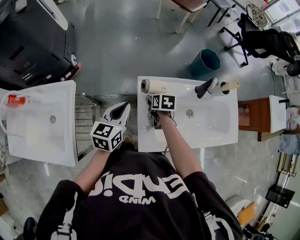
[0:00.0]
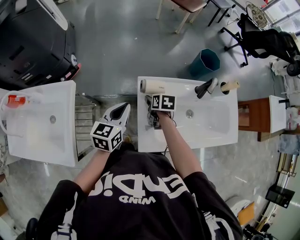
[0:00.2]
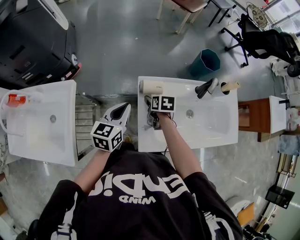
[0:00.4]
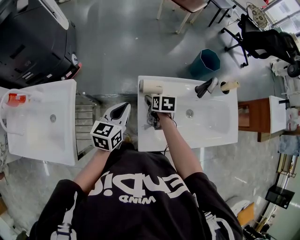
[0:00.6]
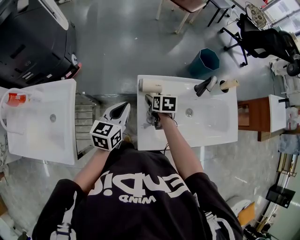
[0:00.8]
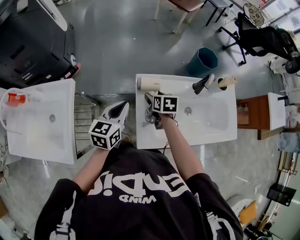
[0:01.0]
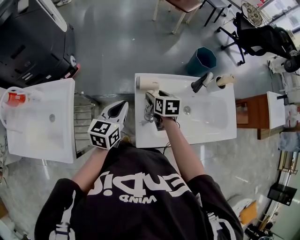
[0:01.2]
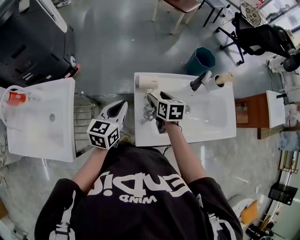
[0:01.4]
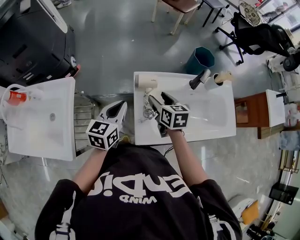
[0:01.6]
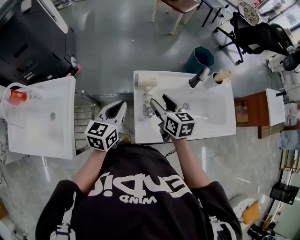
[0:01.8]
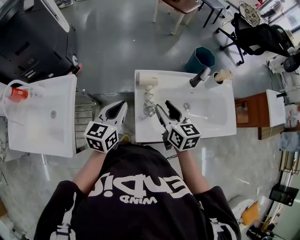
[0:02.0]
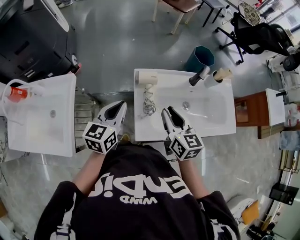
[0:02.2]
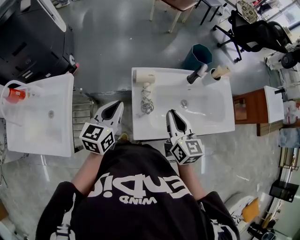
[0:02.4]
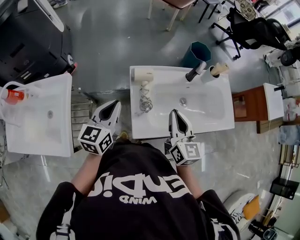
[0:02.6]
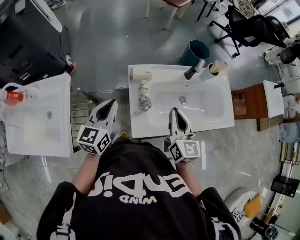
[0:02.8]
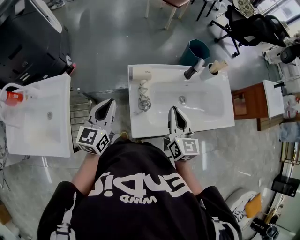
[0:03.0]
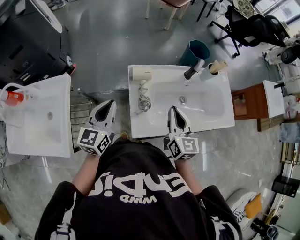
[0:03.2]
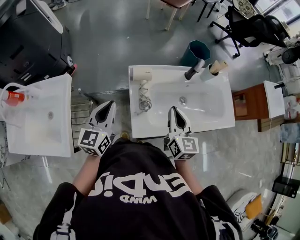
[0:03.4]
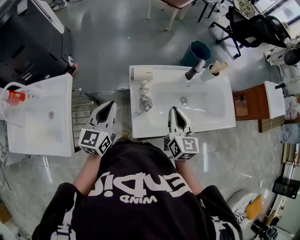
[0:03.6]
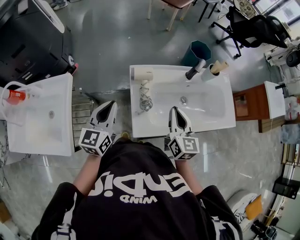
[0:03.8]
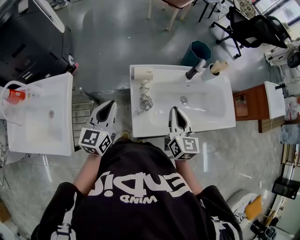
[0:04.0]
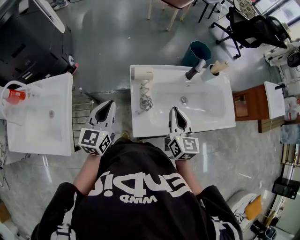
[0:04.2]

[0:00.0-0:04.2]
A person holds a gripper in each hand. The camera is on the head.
0:00.0 to 0:01.4: The right gripper moves upward, about 10 cm.
0:01.4 to 0:02.8: The left gripper moves some 5 cm. The right gripper is displaced backward, upward and to the right by some 20 cm, points its fingers some 30 degrees further upward, and closes.
0:02.8 to 0:04.2: The grippers make only small movements.

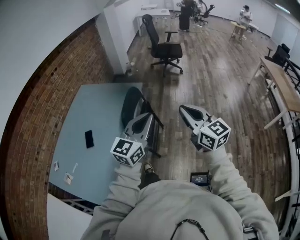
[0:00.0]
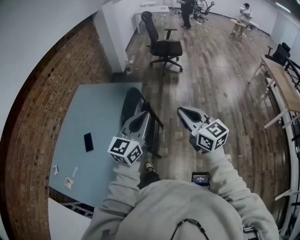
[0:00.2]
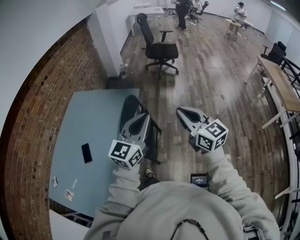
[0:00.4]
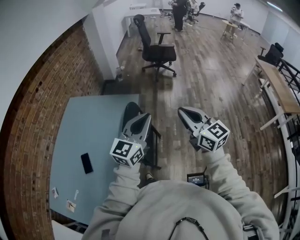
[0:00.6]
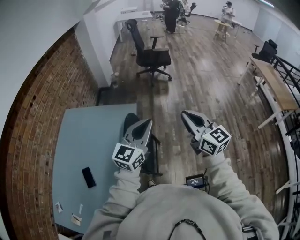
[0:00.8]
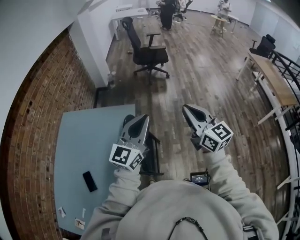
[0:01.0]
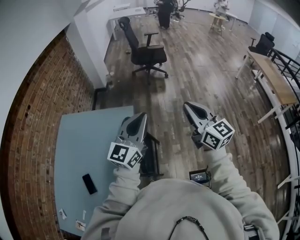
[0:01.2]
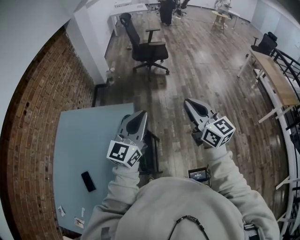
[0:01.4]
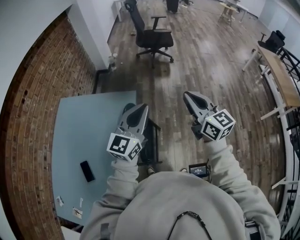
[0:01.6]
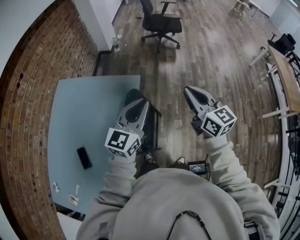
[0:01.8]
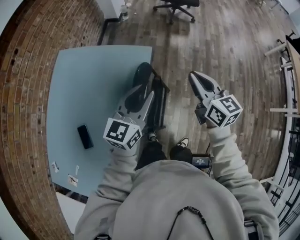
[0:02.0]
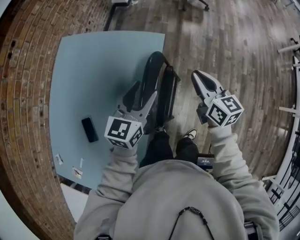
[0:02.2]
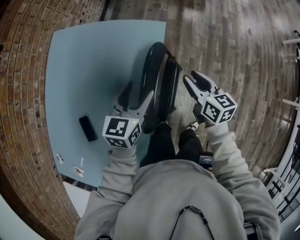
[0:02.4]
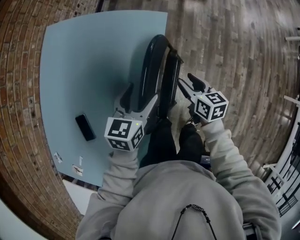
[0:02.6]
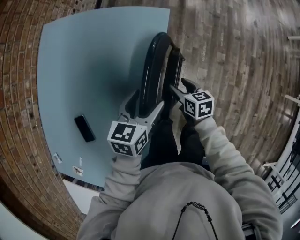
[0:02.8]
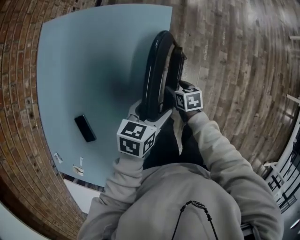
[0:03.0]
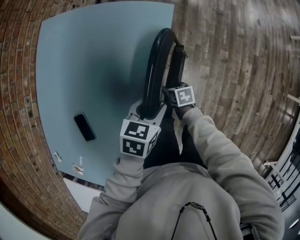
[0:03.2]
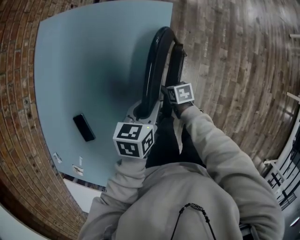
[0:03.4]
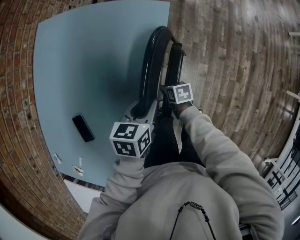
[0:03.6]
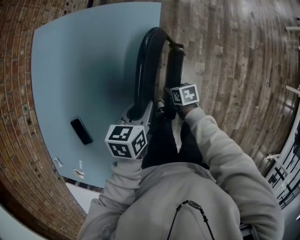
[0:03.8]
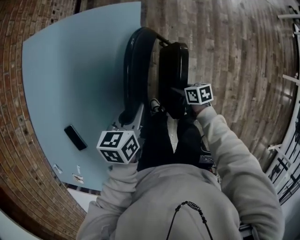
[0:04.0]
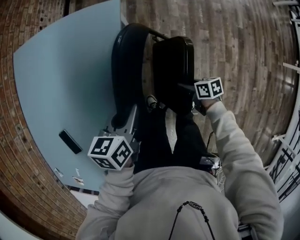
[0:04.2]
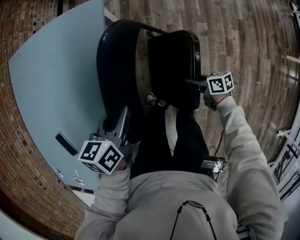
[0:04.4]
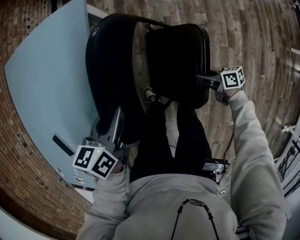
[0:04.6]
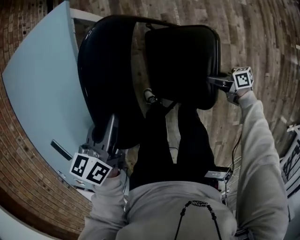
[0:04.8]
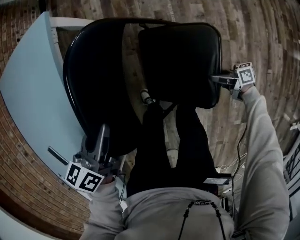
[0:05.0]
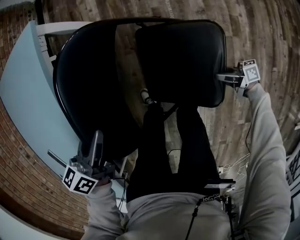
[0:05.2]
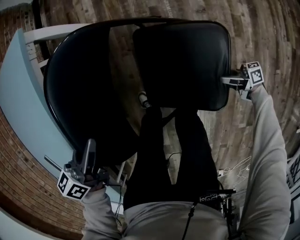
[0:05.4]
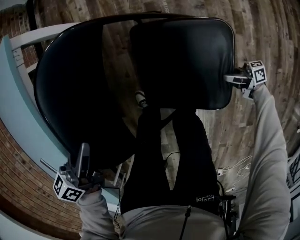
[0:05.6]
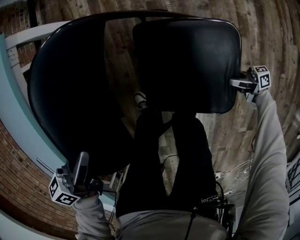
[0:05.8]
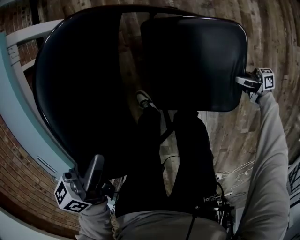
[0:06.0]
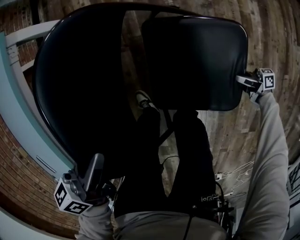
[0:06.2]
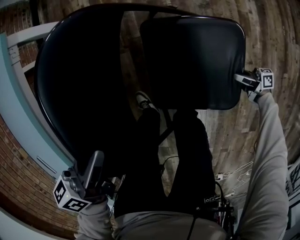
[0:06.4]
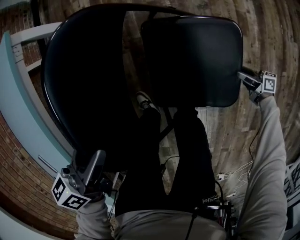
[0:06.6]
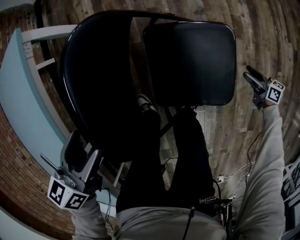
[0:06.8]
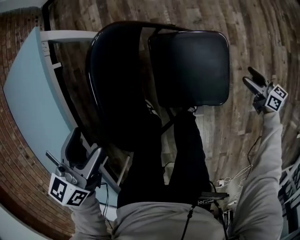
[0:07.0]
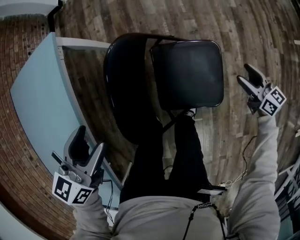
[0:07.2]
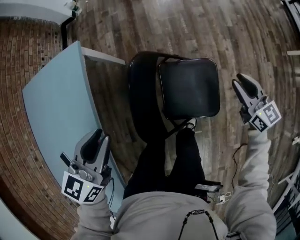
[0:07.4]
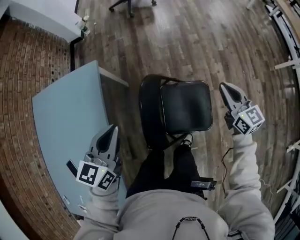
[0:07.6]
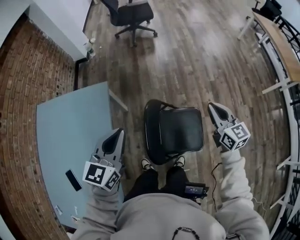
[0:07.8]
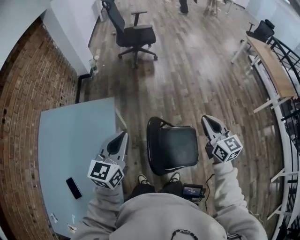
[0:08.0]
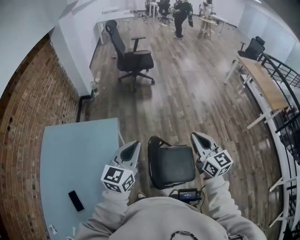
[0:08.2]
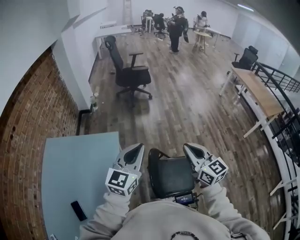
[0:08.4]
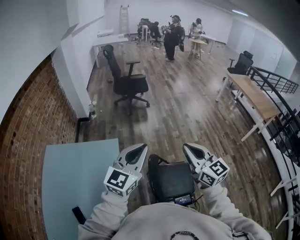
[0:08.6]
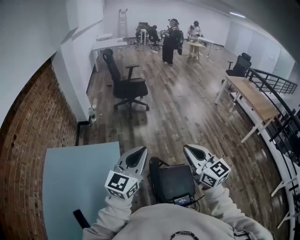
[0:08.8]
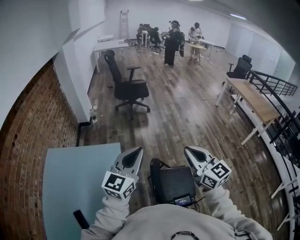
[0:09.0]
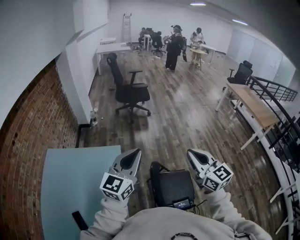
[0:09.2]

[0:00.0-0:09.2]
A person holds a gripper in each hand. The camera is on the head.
0:00.0 to 0:01.6: The two grippers go about 35 cm forward.
0:01.6 to 0:03.0: The two grippers go approximately 50 cm downward. The left gripper points its fingers some 50 degrees further downward, and opens its fingers, while the right gripper angles its fingers downward, by approximately 50 degrees, and opens.
0:03.0 to 0:04.6: The left gripper moves to the right, some 10 cm, and closes its fingers; the right gripper travels to the right and backward by approximately 35 cm, changes its angle by some 40 degrees, and closes.
0:04.6 to 0:06.2: The right gripper heads downward, to the right and backward, covering roughly 40 cm, and swivels about 30 degrees, while the left gripper goes about 20 cm to the right, downward and backward.
0:06.2 to 0:07.6: The right gripper heads upward, covering approximately 60 cm, swivels about 80 degrees, and closes its fingers. The left gripper heads upward, covering approximately 30 cm, turns by some 40 degrees, and opens, then closes again.
0:07.6 to 0:09.2: The right gripper moves upward and to the left, approximately 50 cm, and swivels roughly 20 degrees; the left gripper moves upward, some 30 cm, and tilts its fingers roughly 30 degrees upward.

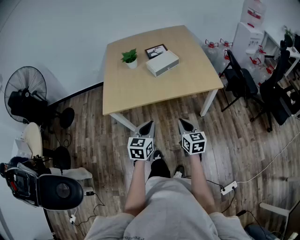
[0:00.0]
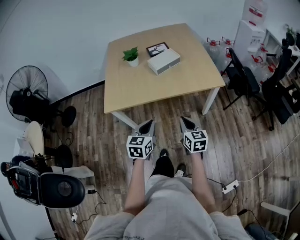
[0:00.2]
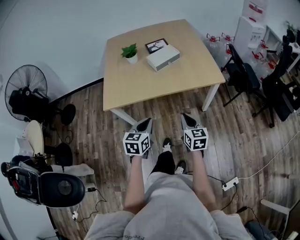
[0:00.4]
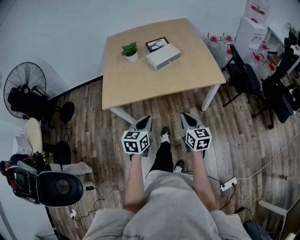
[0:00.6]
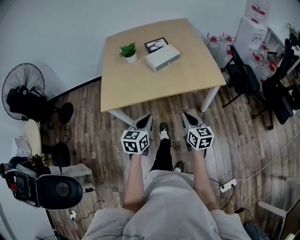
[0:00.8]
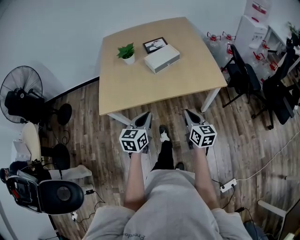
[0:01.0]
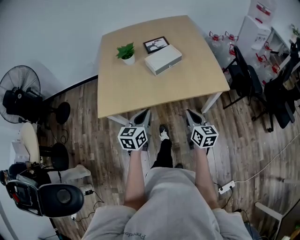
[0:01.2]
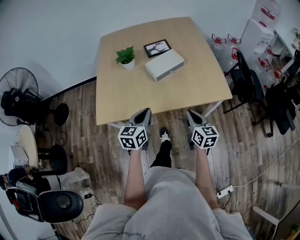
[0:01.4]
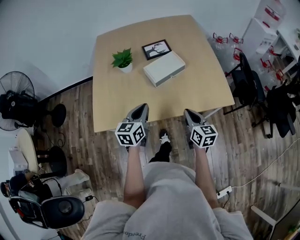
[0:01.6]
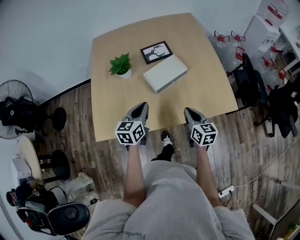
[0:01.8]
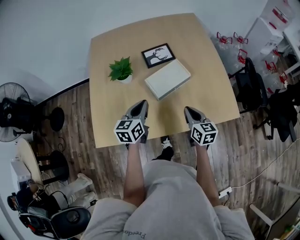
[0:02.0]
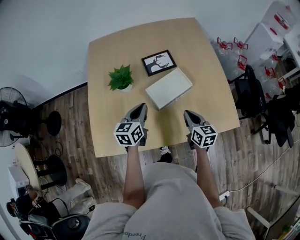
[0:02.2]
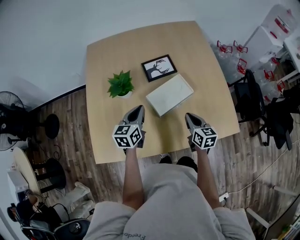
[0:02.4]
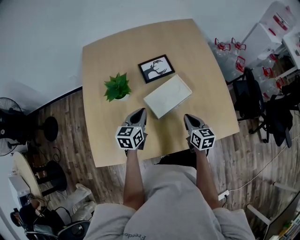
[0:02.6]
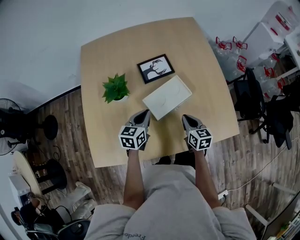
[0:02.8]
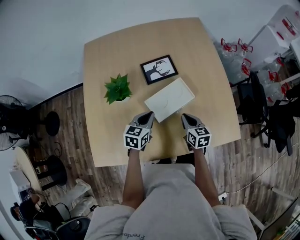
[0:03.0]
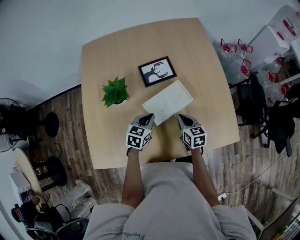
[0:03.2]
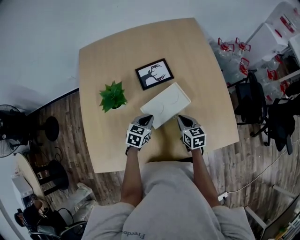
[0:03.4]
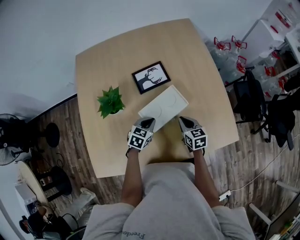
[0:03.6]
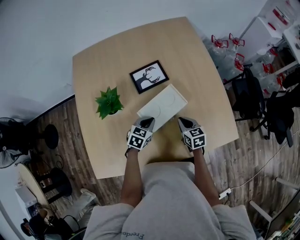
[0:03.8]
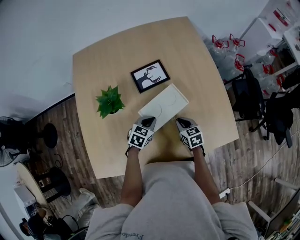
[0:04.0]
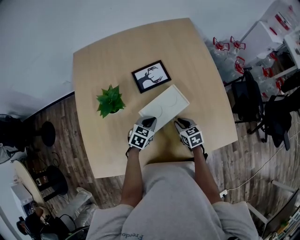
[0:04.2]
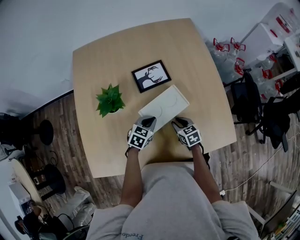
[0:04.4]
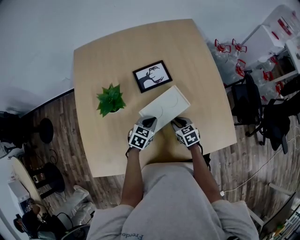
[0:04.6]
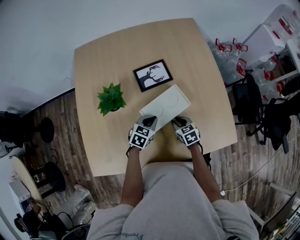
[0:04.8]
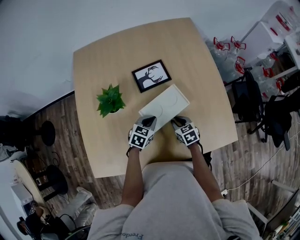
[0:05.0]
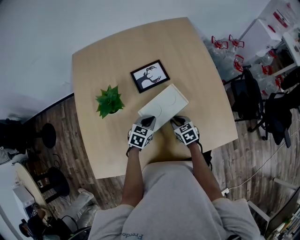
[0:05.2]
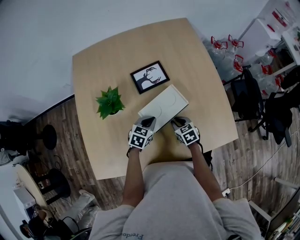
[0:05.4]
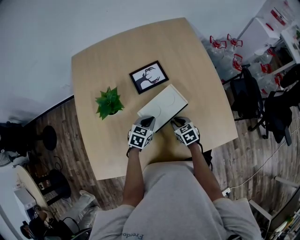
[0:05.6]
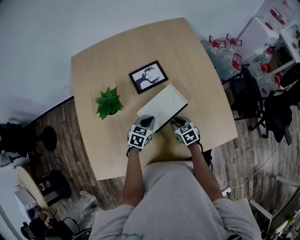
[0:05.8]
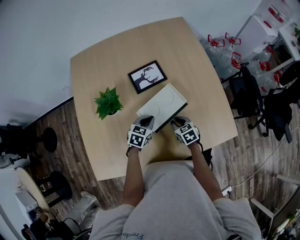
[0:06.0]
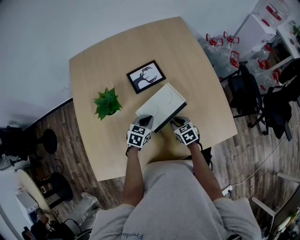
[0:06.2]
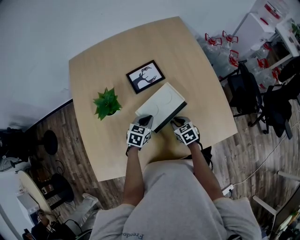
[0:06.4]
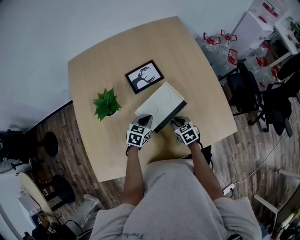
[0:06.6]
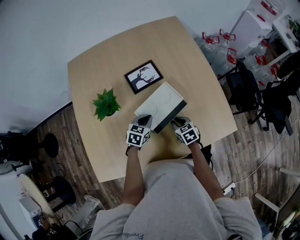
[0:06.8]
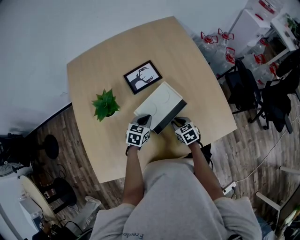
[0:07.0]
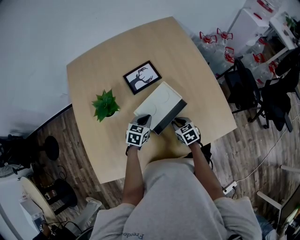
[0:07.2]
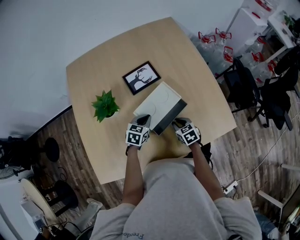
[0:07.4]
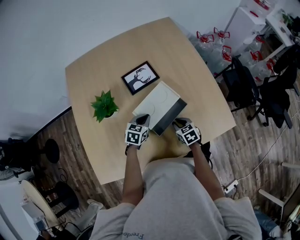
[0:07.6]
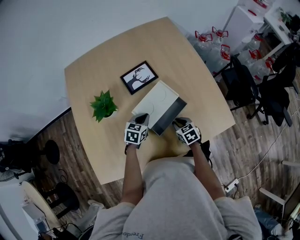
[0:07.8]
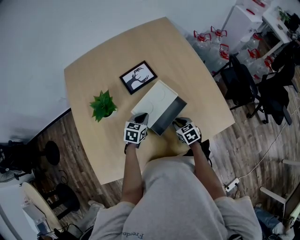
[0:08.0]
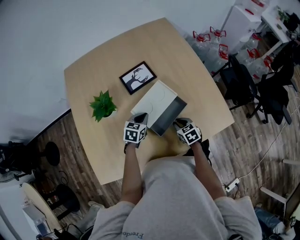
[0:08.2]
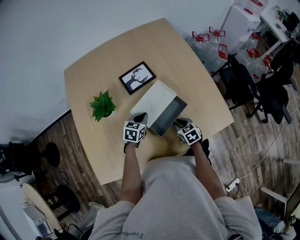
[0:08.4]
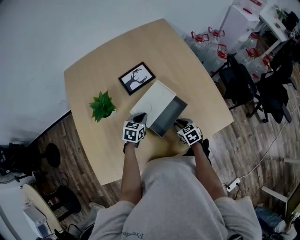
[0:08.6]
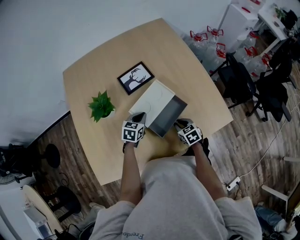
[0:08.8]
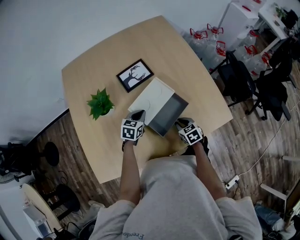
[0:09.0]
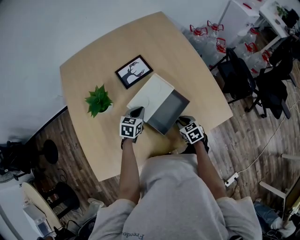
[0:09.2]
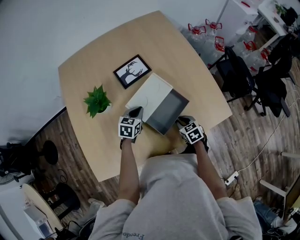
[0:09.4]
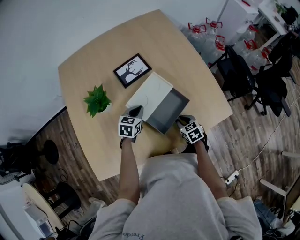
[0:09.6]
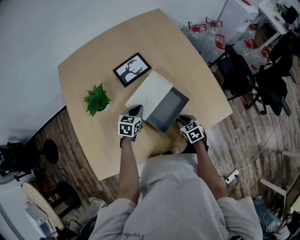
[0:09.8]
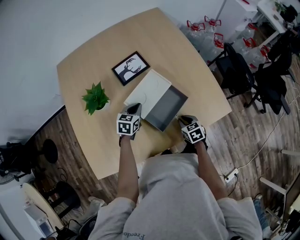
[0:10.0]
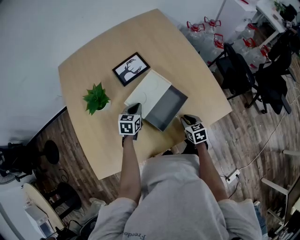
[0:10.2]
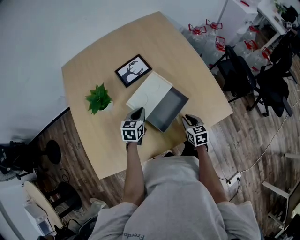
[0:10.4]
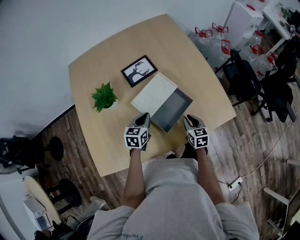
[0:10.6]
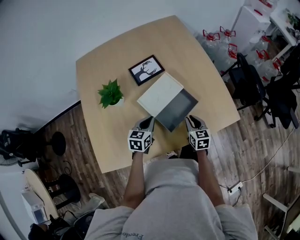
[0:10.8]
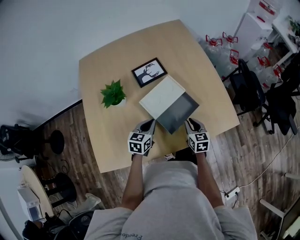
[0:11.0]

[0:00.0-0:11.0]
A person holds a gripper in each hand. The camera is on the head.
0:00.0 to 0:01.6: Both grippers travel together forward, about 30 cm.
0:01.6 to 0:03.2: The left gripper travels forward and downward by some 30 cm, and changes its angle by about 20 degrees. Meanwhile the right gripper shifts about 25 cm forward.
0:03.2 to 0:04.8: The right gripper heads downward, covering about 5 cm. The left gripper ends up some 5 cm from where it was.
0:04.8 to 0:07.8: The grippers stay close to where they were, moving slightly.
0:07.8 to 0:09.4: The right gripper changes place by approximately 5 cm.
0:09.4 to 0:11.0: The left gripper goes some 10 cm backward, while the right gripper is displaced upward by about 5 cm, and swivels roughly 20 degrees.
